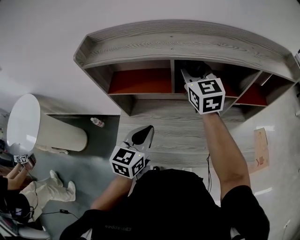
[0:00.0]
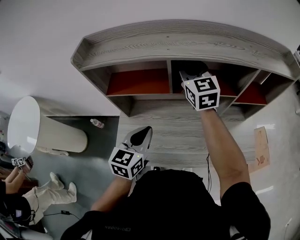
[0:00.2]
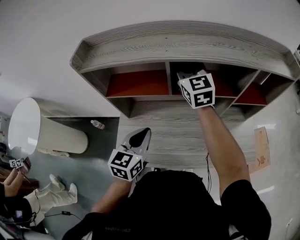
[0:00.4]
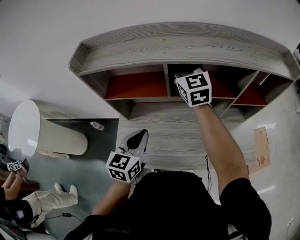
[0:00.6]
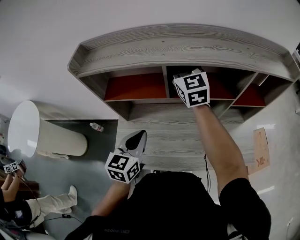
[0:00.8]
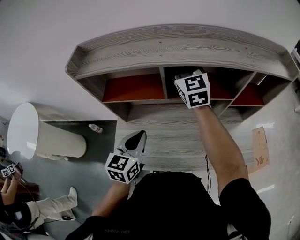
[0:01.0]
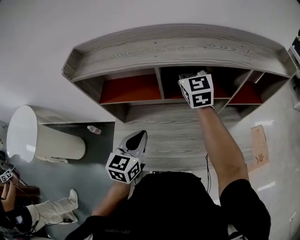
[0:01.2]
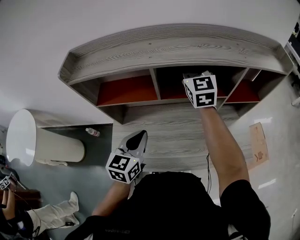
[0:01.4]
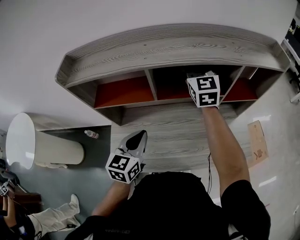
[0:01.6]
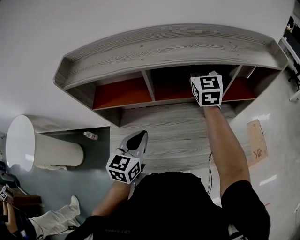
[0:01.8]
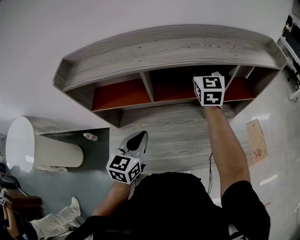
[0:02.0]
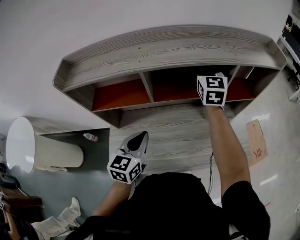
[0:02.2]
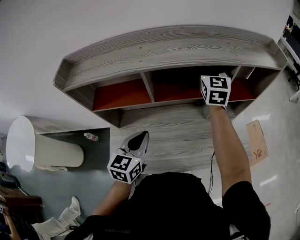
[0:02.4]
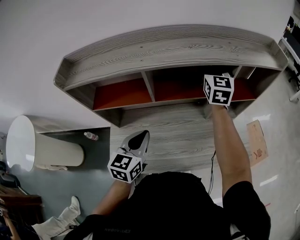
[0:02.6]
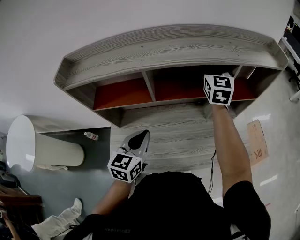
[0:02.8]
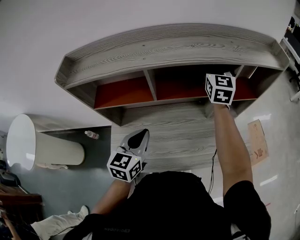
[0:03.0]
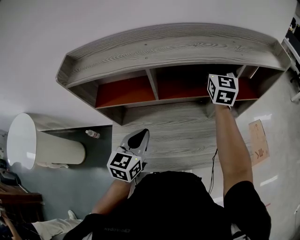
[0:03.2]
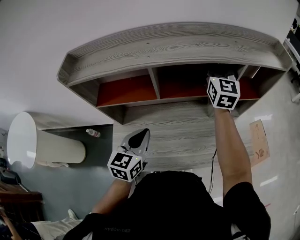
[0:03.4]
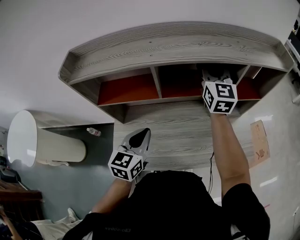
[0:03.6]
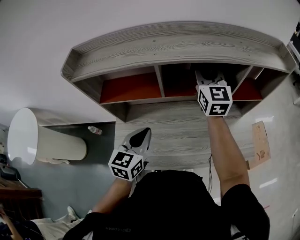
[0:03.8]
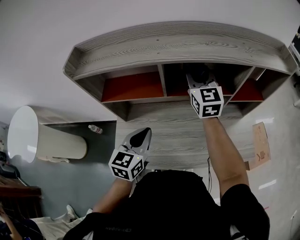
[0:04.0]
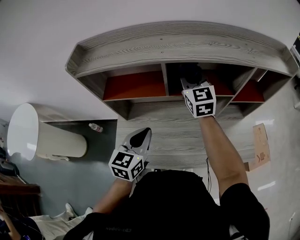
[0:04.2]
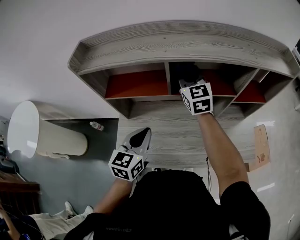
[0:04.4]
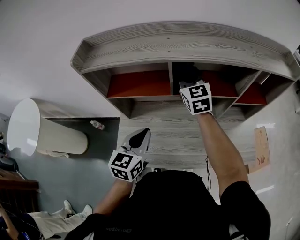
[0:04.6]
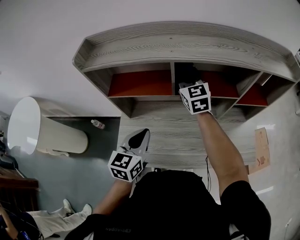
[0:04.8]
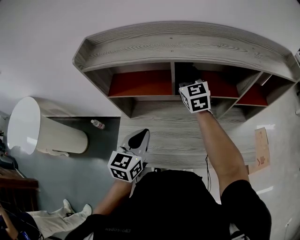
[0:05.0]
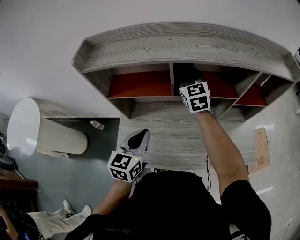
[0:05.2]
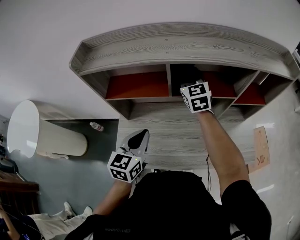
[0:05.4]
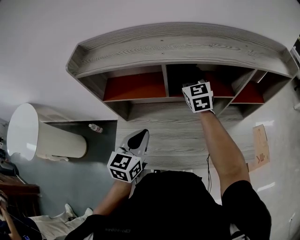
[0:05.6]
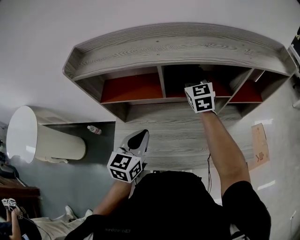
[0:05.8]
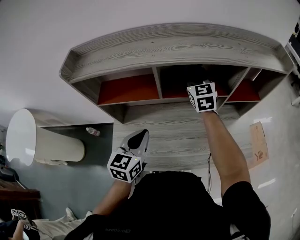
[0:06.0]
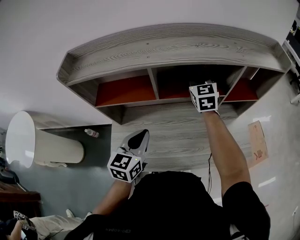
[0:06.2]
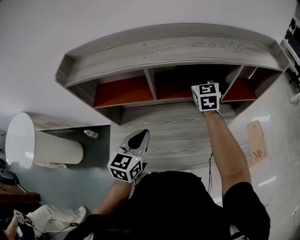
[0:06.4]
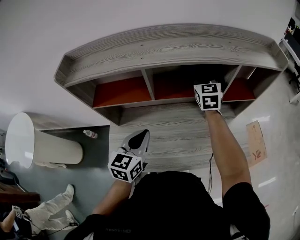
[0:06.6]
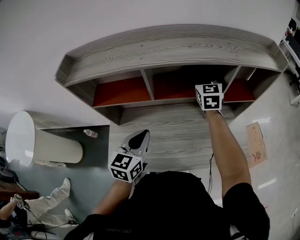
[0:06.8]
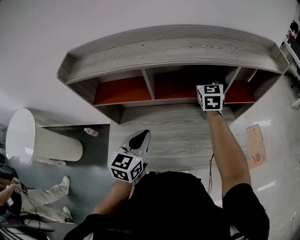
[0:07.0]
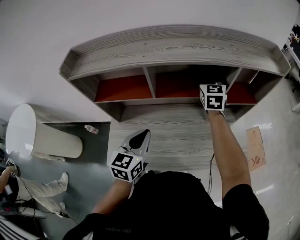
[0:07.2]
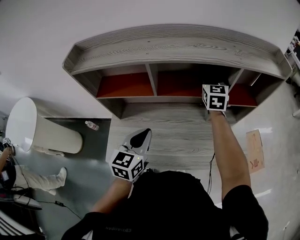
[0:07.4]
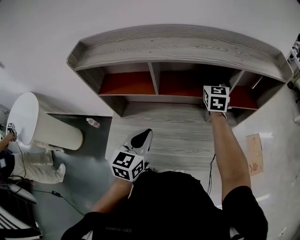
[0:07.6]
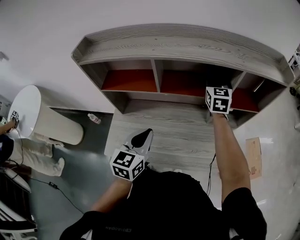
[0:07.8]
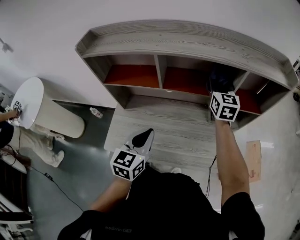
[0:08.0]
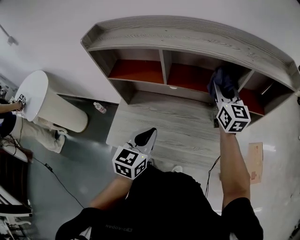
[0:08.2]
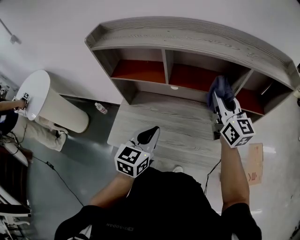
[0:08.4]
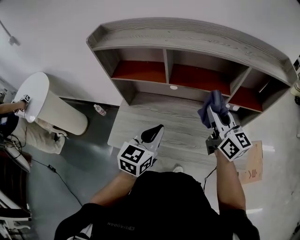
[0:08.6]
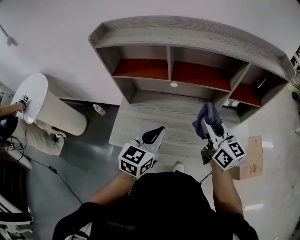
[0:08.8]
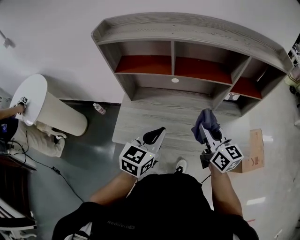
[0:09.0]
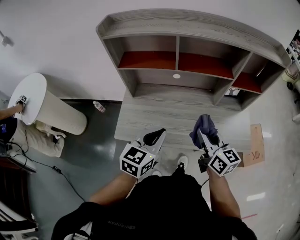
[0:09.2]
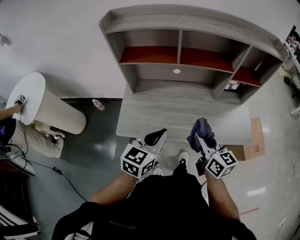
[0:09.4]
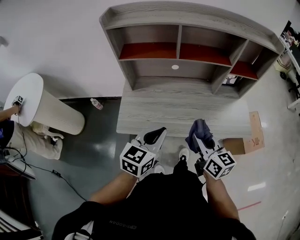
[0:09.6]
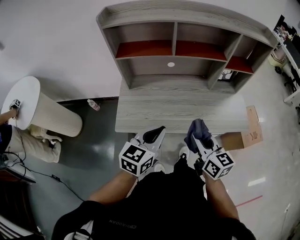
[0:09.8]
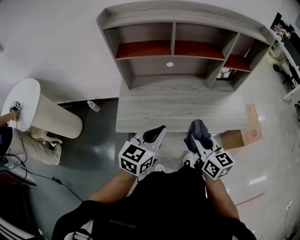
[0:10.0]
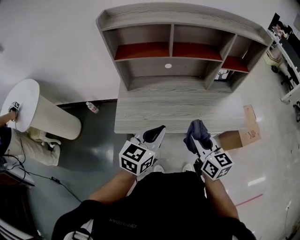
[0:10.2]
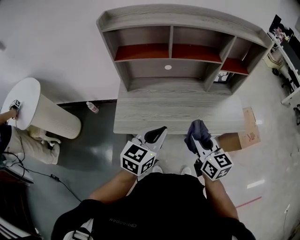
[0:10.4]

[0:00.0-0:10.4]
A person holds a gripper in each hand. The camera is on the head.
0:00.0 to 0:01.4: The right gripper moves to the right, roughly 5 cm.
0:01.4 to 0:03.0: The right gripper moves to the right, some 10 cm.
0:03.0 to 0:04.4: The right gripper moves to the left, roughly 20 cm, and changes its angle by approximately 20 degrees.
0:04.4 to 0:06.0: The right gripper heads to the right, covering some 10 cm.
0:06.0 to 0:07.4: The right gripper is displaced to the right by about 10 cm. Meanwhile the left gripper changes place by about 5 cm.
0:07.4 to 0:09.0: The left gripper shifts approximately 10 cm backward; the right gripper heads backward, covering about 30 cm, and rotates some 40 degrees.
0:09.0 to 0:10.4: Both grippers move backward, about 15 cm.

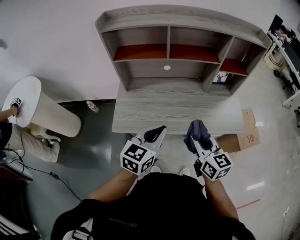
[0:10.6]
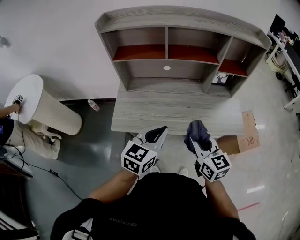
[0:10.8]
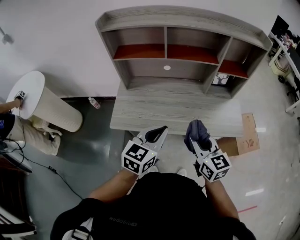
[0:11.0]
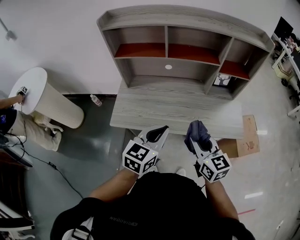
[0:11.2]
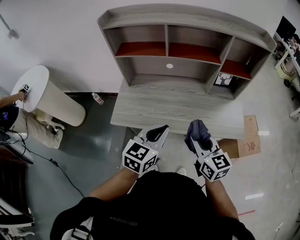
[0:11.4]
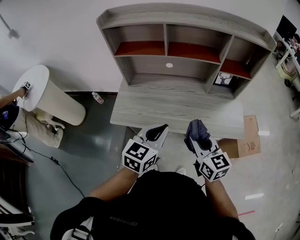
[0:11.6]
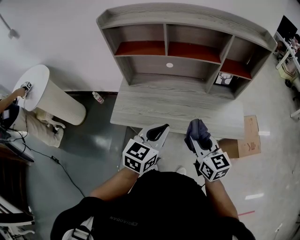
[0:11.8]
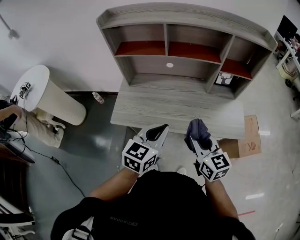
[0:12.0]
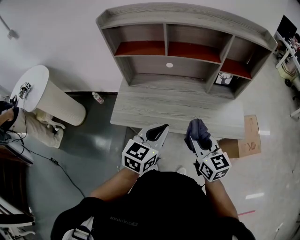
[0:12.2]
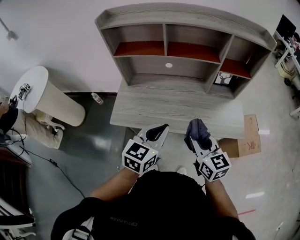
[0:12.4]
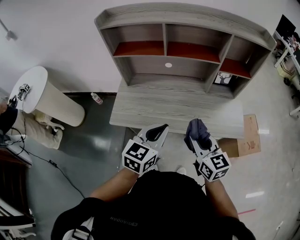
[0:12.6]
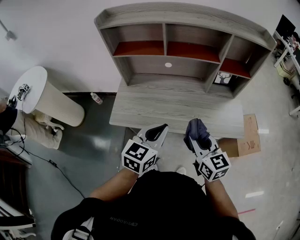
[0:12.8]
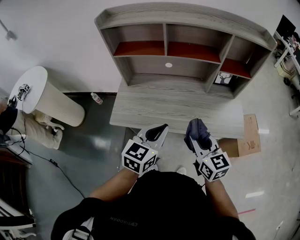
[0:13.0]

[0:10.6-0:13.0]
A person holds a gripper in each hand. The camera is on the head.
0:10.6 to 0:11.8: The grippers both shift to the right by roughly 5 cm.
0:11.8 to 0:13.0: Neither gripper changes place.

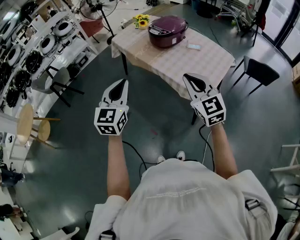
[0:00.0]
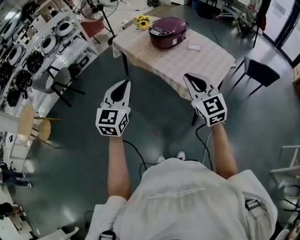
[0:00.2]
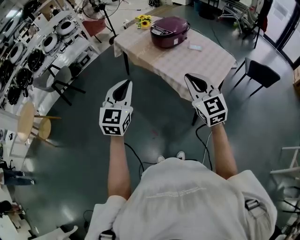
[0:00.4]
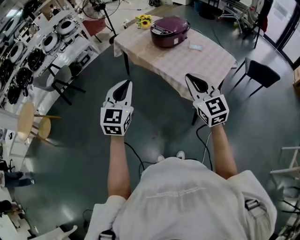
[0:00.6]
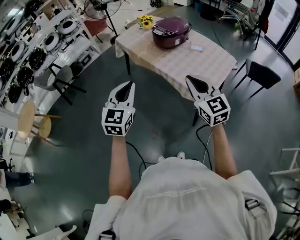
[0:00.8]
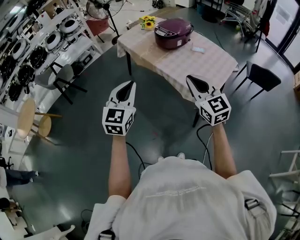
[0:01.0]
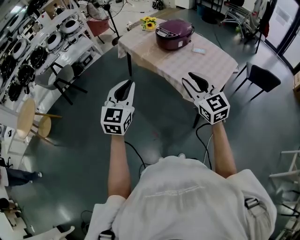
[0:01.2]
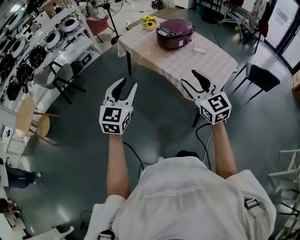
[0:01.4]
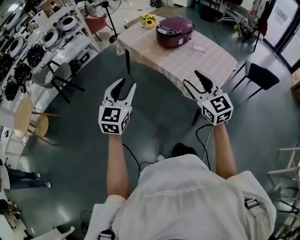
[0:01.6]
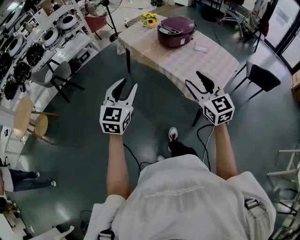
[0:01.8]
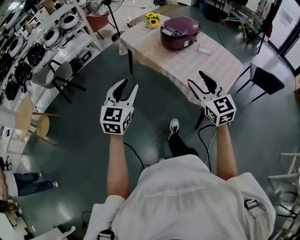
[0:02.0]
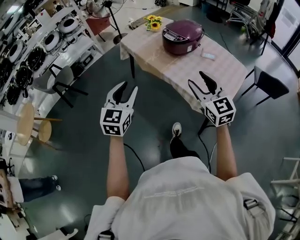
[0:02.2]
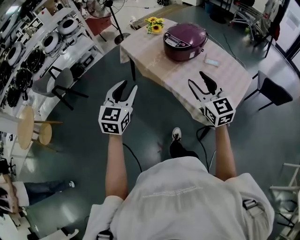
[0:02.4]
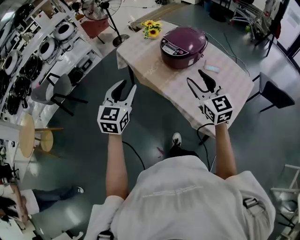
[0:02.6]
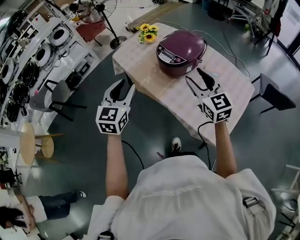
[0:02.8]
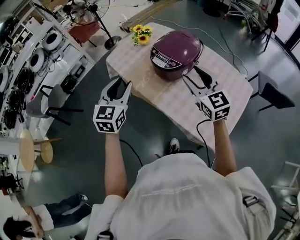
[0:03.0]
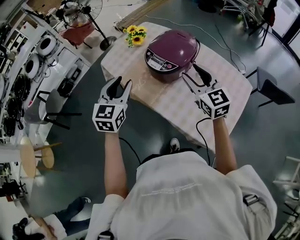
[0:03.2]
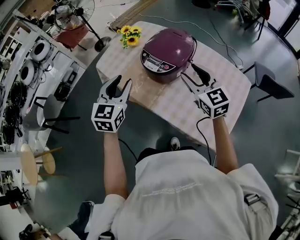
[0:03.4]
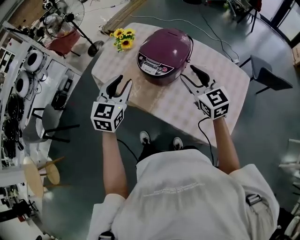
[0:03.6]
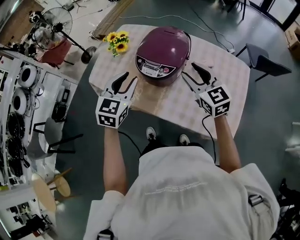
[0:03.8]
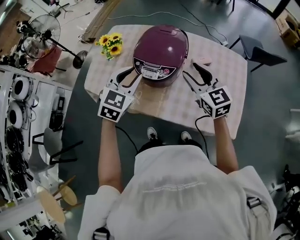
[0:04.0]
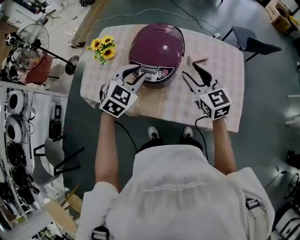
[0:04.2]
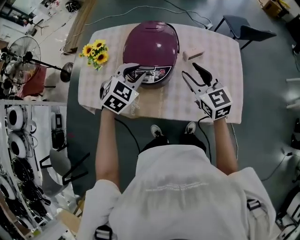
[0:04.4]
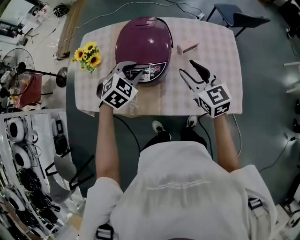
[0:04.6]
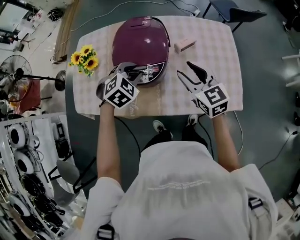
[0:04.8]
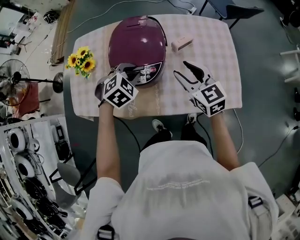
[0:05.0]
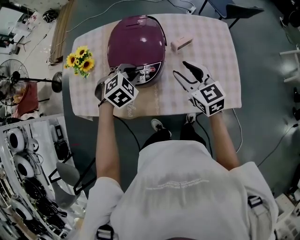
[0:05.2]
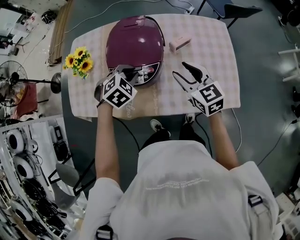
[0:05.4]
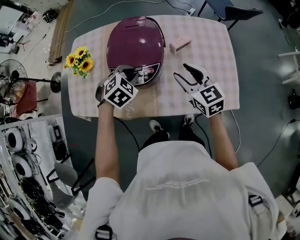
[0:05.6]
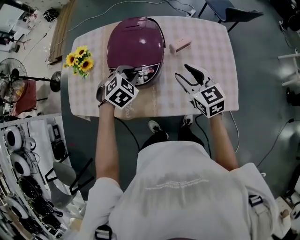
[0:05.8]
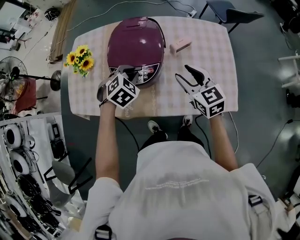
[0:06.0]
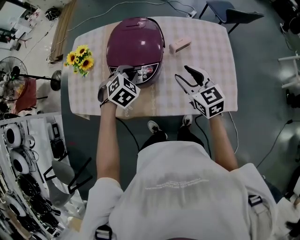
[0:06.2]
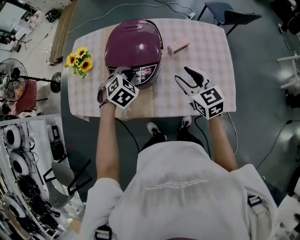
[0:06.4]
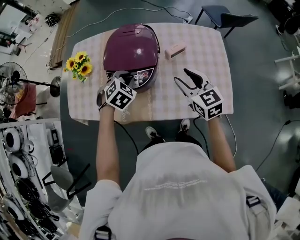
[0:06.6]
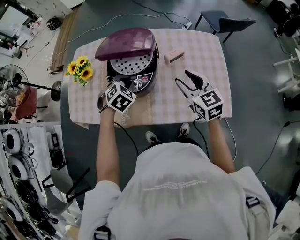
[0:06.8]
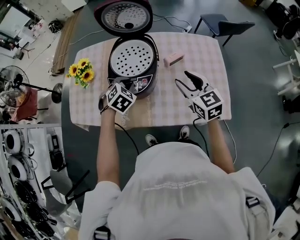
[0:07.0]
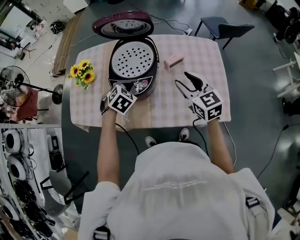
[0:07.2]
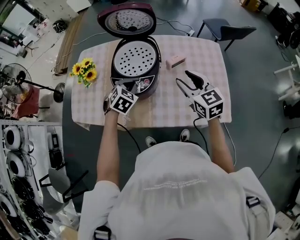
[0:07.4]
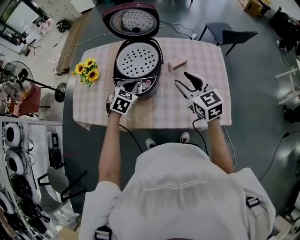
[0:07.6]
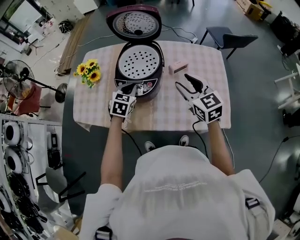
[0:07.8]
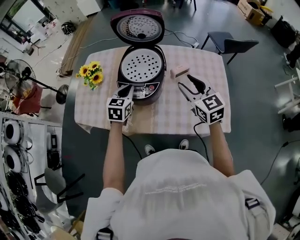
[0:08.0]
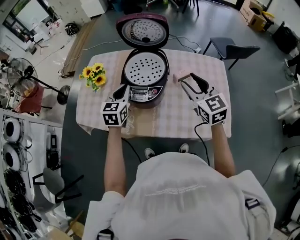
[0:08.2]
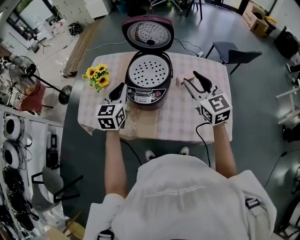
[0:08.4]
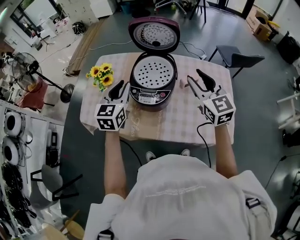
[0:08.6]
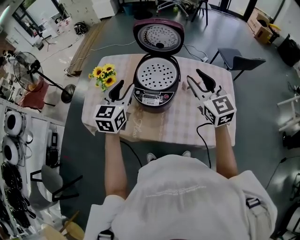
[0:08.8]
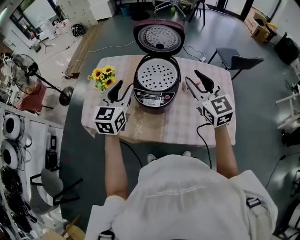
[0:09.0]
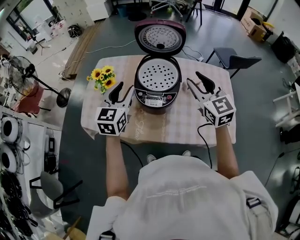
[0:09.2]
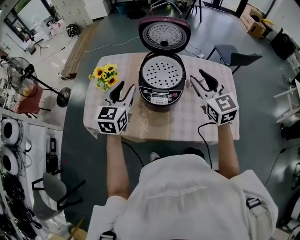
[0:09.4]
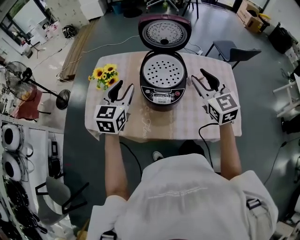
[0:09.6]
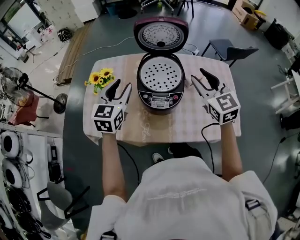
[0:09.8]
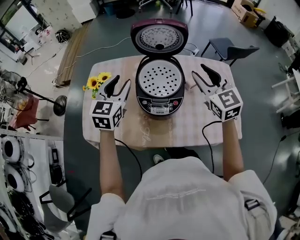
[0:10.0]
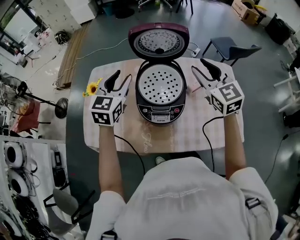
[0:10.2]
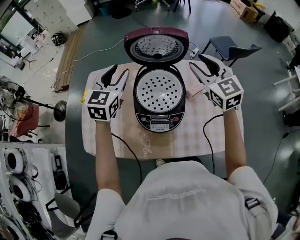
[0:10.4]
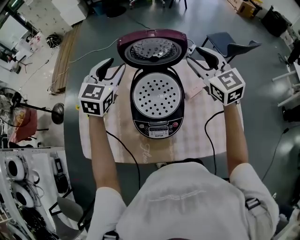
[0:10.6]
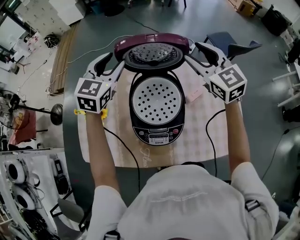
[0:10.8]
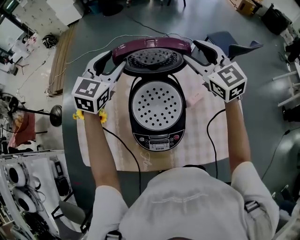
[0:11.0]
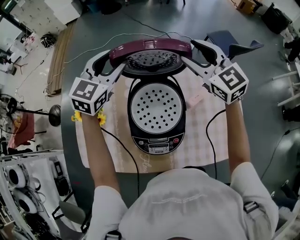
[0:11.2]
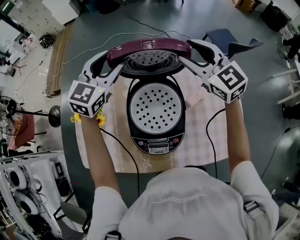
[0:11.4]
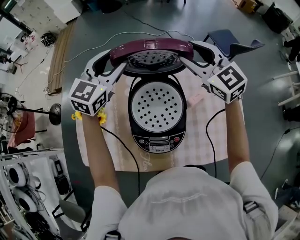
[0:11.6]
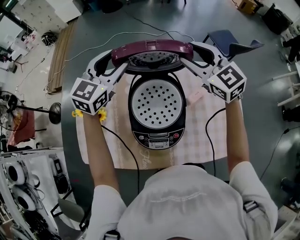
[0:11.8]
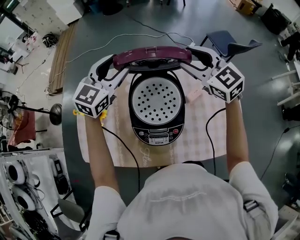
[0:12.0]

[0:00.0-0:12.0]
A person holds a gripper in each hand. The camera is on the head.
0:00.0 to 0:01.6: The right gripper opens; the left gripper shifts by approximately 5 cm, and opens its fingers.
0:01.6 to 0:03.0: The pair of grippers is taken forward, approximately 40 cm.
0:03.0 to 0:04.4: The left gripper shifts by about 25 cm, and turns by some 70 degrees. Meanwhile the right gripper changes place by about 10 cm, and swivels approximately 30 degrees.
0:04.4 to 0:06.0: The left gripper travels downward by approximately 5 cm.
0:06.0 to 0:07.6: The right gripper changes place by about 5 cm. Meanwhile the left gripper rotates some 20 degrees.
0:07.6 to 0:09.0: The right gripper shifts about 10 cm upward and to the left. Meanwhile the left gripper heads upward and to the left, covering roughly 20 cm, points its fingers some 30 degrees further upward, and opens.
0:09.0 to 0:10.4: The grippers both shift forward by some 20 cm.
0:10.4 to 0:12.0: Both grippers travel together forward, about 5 cm.
